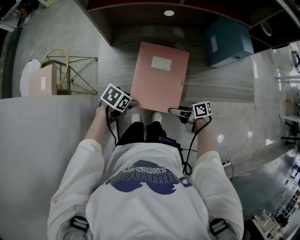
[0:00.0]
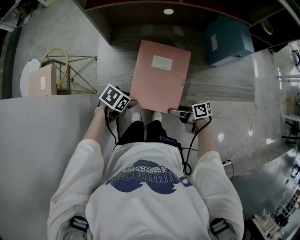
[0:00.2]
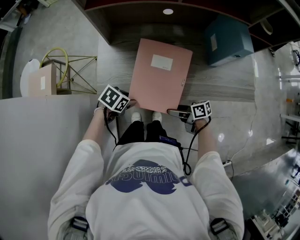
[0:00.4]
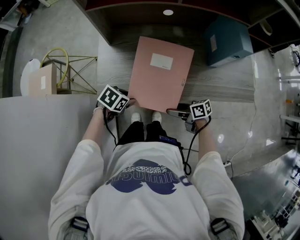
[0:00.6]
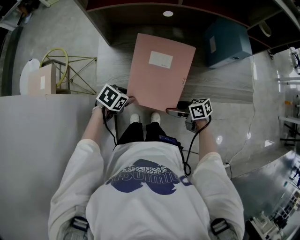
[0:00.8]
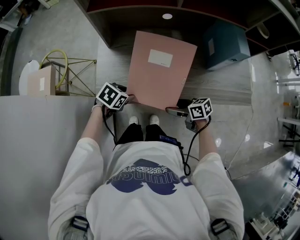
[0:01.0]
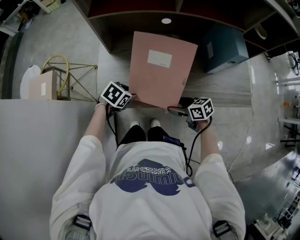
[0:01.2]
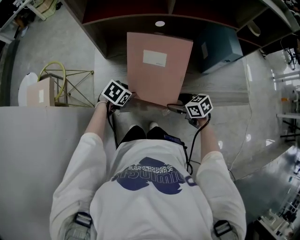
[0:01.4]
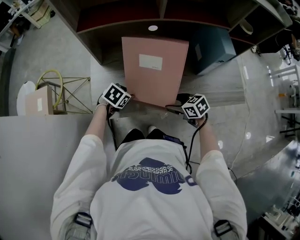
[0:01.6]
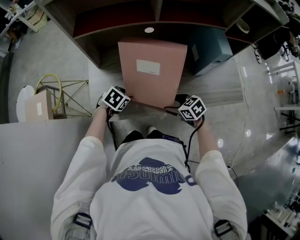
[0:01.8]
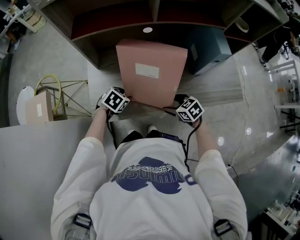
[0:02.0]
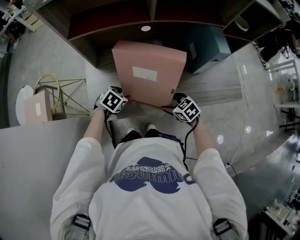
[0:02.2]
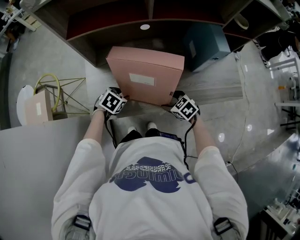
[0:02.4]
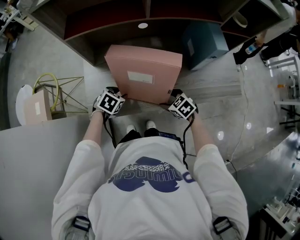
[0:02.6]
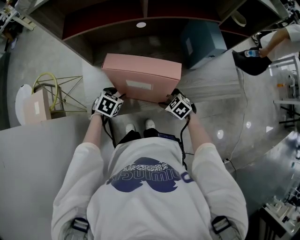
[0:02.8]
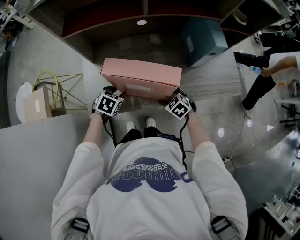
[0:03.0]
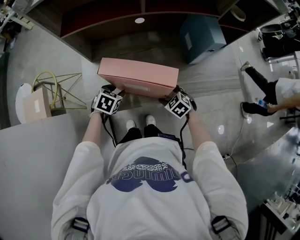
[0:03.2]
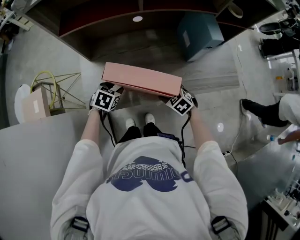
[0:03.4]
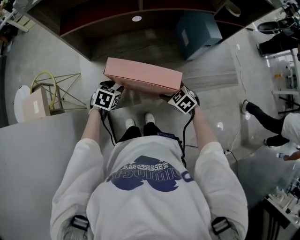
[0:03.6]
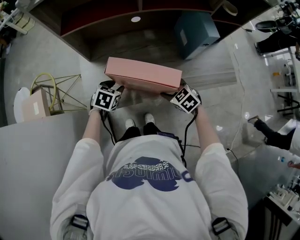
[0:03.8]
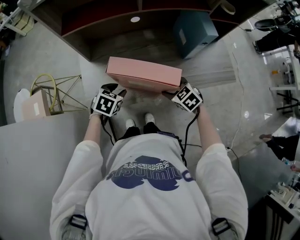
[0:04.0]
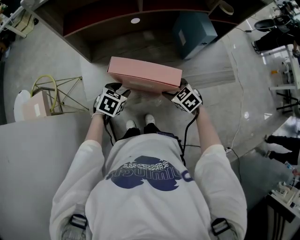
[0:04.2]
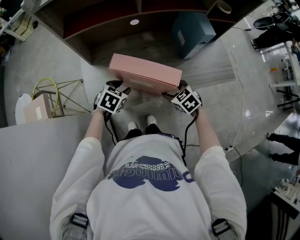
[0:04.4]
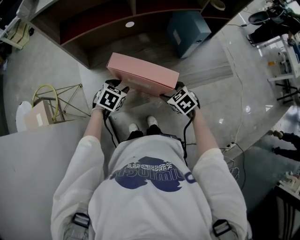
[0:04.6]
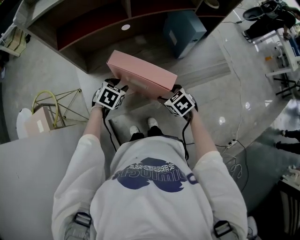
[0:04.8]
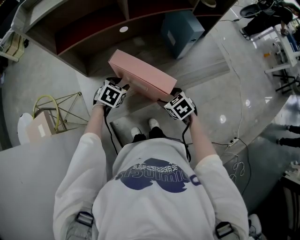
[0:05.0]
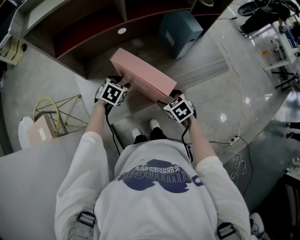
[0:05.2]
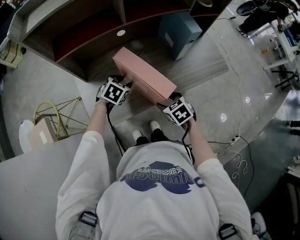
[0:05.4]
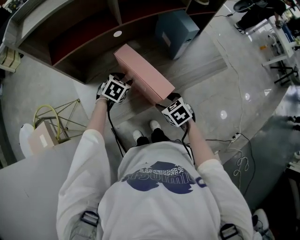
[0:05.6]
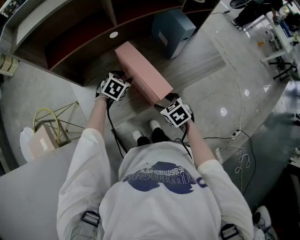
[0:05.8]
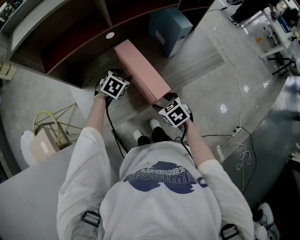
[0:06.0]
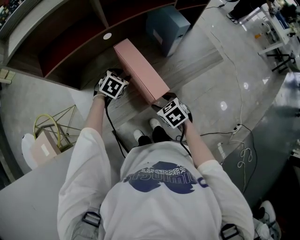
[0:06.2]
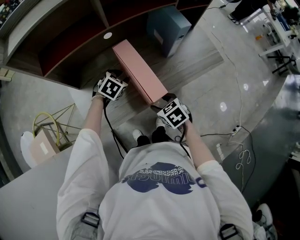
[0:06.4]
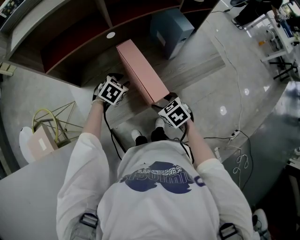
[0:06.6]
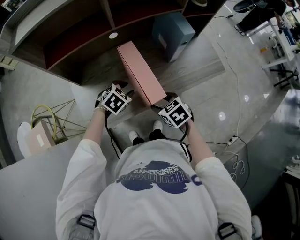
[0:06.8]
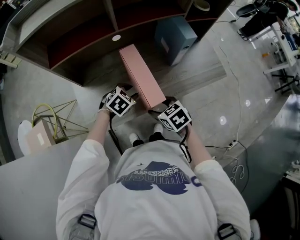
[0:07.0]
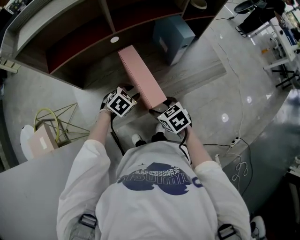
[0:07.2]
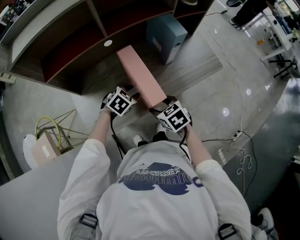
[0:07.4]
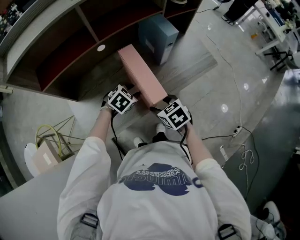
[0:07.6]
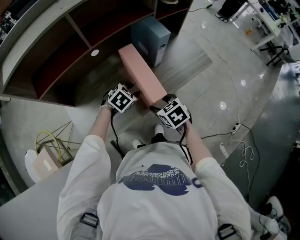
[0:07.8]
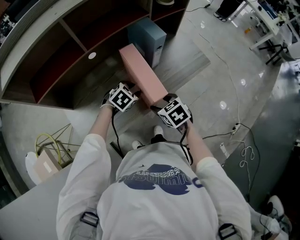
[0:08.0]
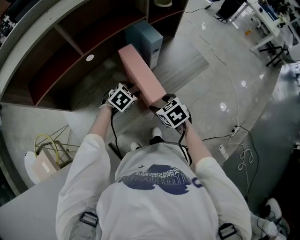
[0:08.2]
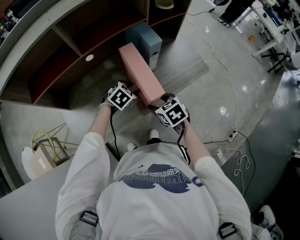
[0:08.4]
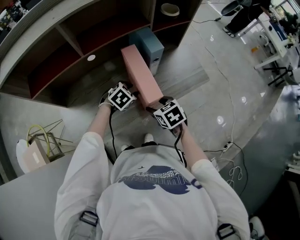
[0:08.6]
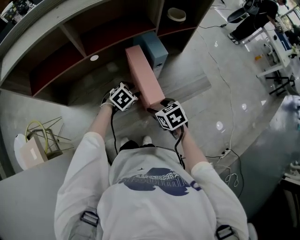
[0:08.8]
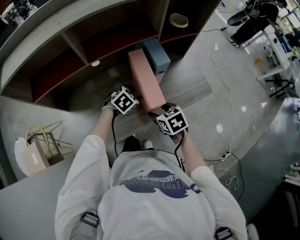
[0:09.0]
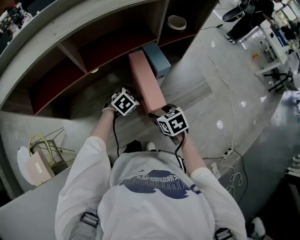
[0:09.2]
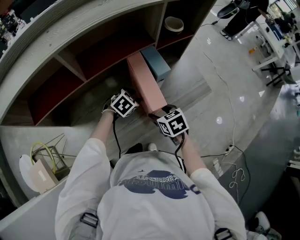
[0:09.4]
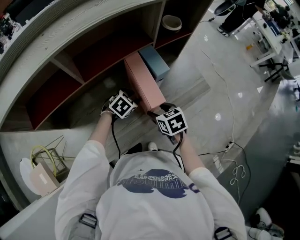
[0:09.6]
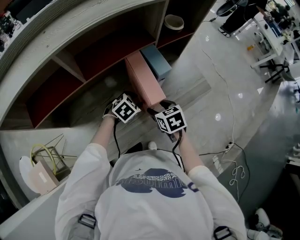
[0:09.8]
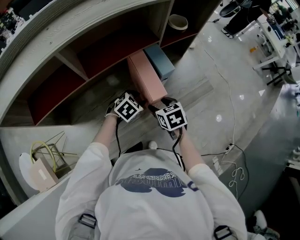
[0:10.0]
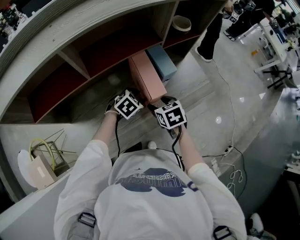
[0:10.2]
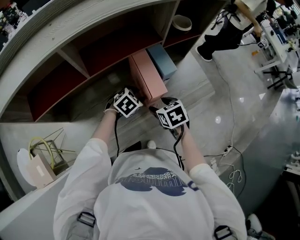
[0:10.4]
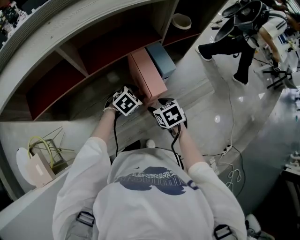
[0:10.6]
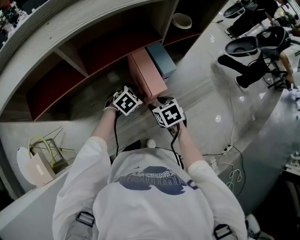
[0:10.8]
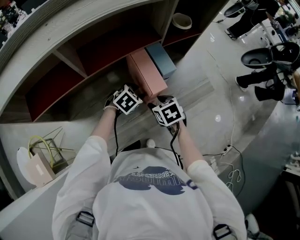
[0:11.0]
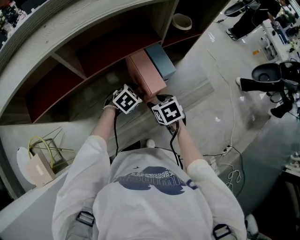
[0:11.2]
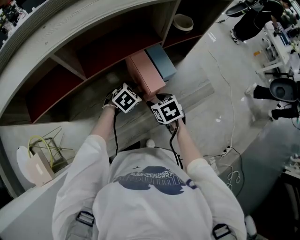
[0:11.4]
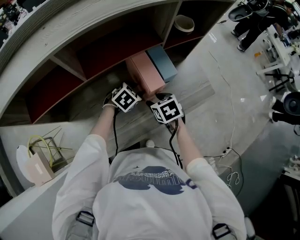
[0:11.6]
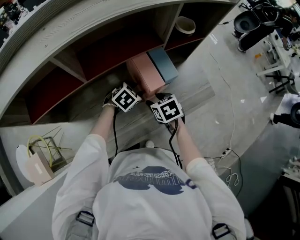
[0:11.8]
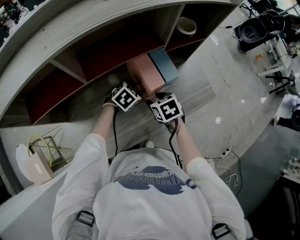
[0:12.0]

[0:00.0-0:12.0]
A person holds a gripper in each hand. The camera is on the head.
0:00.0 to 0:01.6: The left gripper moves approximately 10 cm. The right gripper shifts by approximately 10 cm, and rolls counterclockwise, seen from behind, by some 40 degrees.
0:01.6 to 0:03.0: The right gripper turns by some 30 degrees.
0:03.0 to 0:04.4: The right gripper is displaced upward by approximately 10 cm. Meanwhile the left gripper moves upward, approximately 5 cm.
0:04.4 to 0:06.0: The left gripper moves forward and to the right, some 15 cm, while the right gripper swivels about 20 degrees.
0:06.0 to 0:07.6: The left gripper moves to the right, roughly 10 cm, while the right gripper moves some 5 cm.
0:07.6 to 0:09.0: Both grippers travel together forward and to the right, roughly 10 cm.
0:09.0 to 0:10.4: The right gripper travels forward by approximately 5 cm.
0:10.4 to 0:12.0: The right gripper shifts about 5 cm forward.

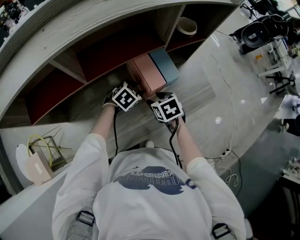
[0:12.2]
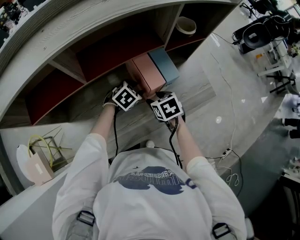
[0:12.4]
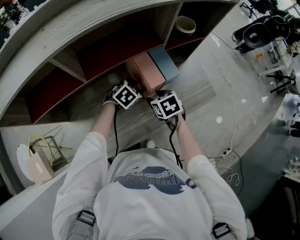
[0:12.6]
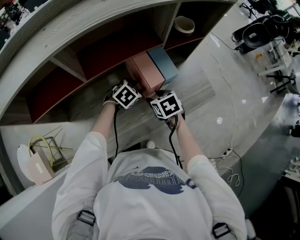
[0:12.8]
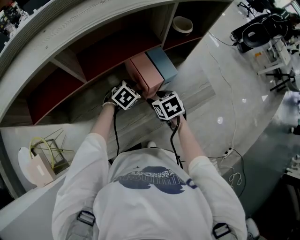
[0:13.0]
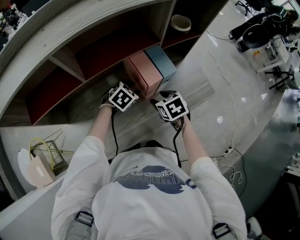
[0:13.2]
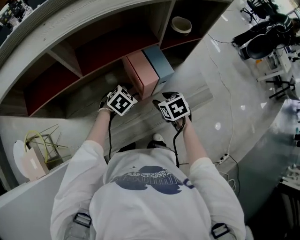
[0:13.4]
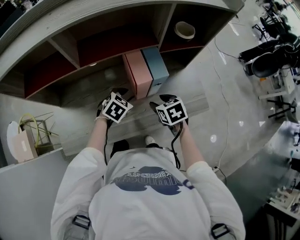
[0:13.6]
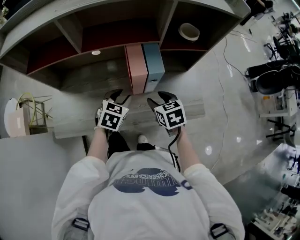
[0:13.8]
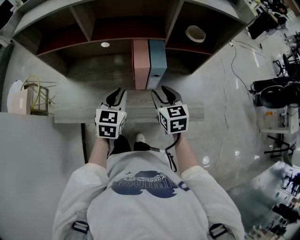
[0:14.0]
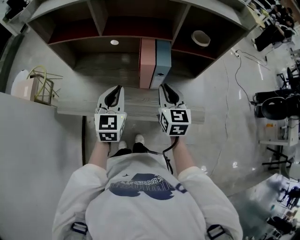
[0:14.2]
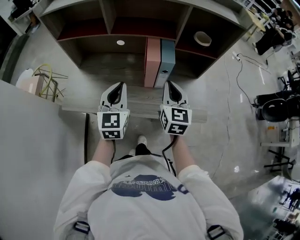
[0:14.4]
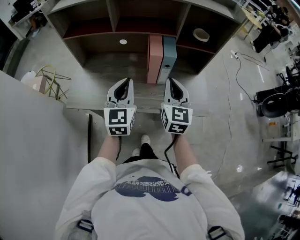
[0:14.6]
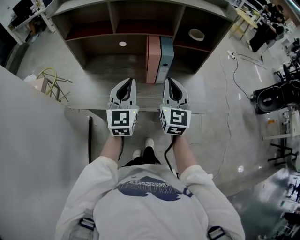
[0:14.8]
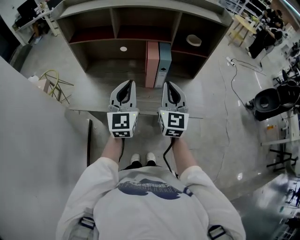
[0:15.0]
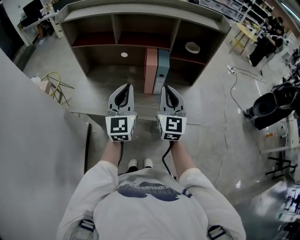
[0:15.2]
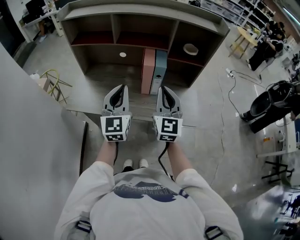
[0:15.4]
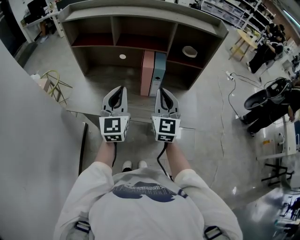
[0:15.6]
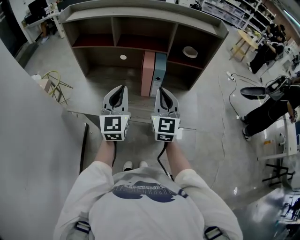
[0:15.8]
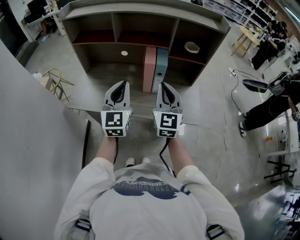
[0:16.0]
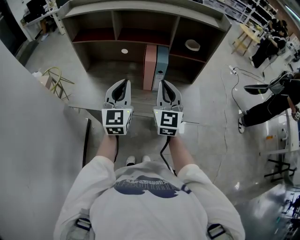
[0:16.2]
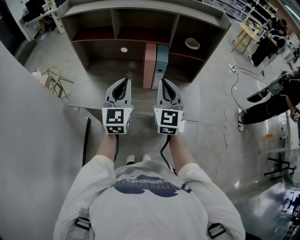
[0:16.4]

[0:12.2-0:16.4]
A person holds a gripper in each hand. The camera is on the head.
0:12.2 to 0:13.6: The right gripper heads to the right, covering about 5 cm; the left gripper ends up approximately 5 cm from where it was.
0:13.6 to 0:15.0: Both grippers travel together upward and backward, roughly 30 cm. The left gripper tips its fingers upward by approximately 50 degrees, and closes up. The right gripper angles its fingers upward, by approximately 60 degrees, and closes its fingers.
0:15.0 to 0:16.4: There are only small adjustments of the grippers.

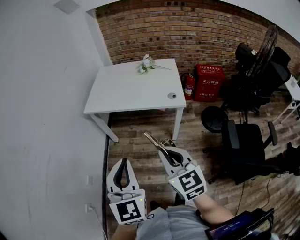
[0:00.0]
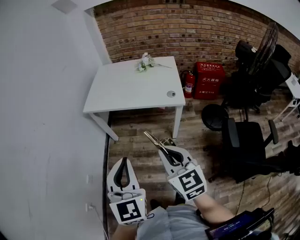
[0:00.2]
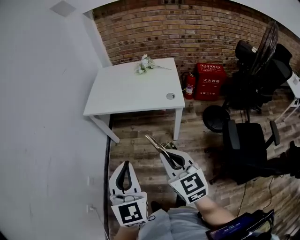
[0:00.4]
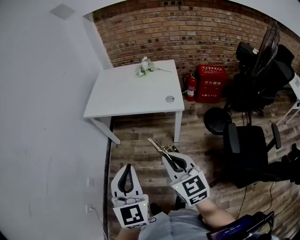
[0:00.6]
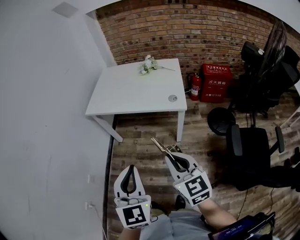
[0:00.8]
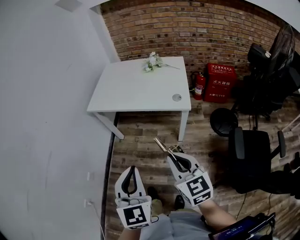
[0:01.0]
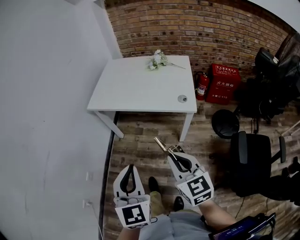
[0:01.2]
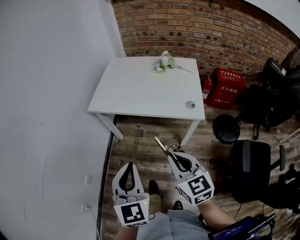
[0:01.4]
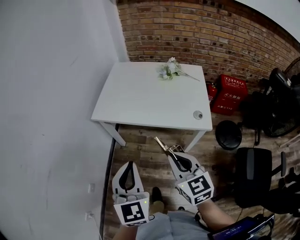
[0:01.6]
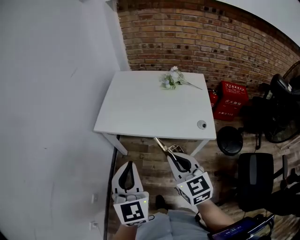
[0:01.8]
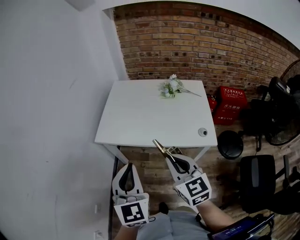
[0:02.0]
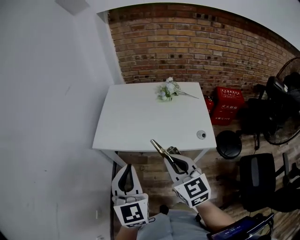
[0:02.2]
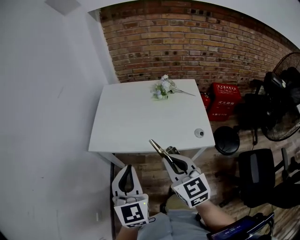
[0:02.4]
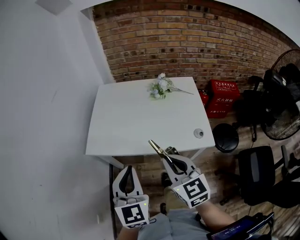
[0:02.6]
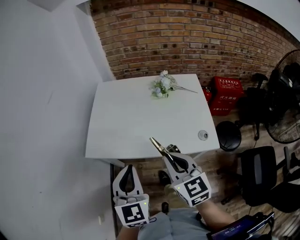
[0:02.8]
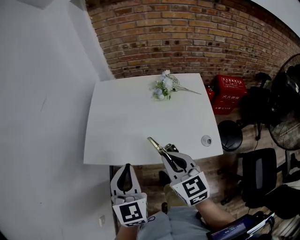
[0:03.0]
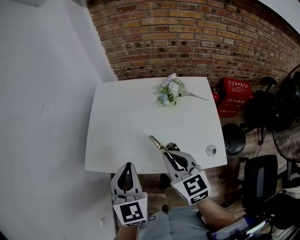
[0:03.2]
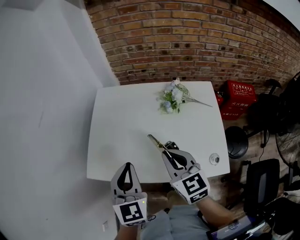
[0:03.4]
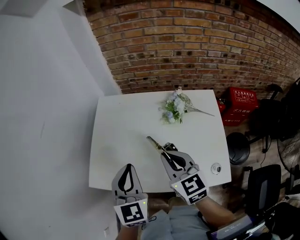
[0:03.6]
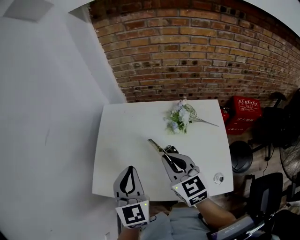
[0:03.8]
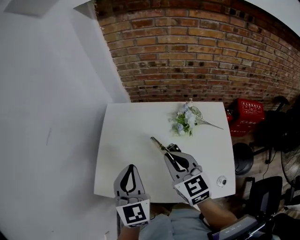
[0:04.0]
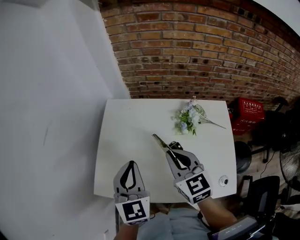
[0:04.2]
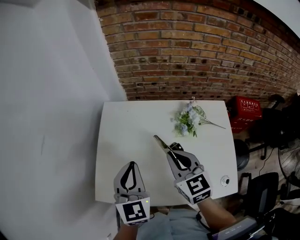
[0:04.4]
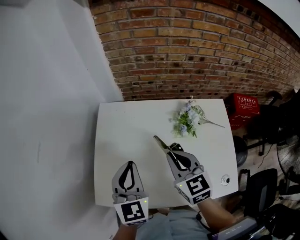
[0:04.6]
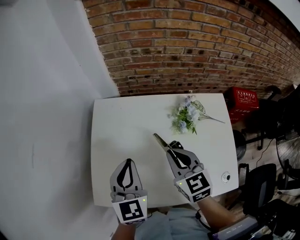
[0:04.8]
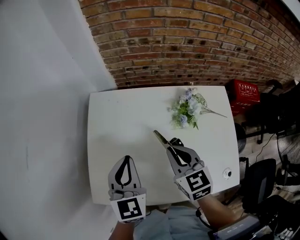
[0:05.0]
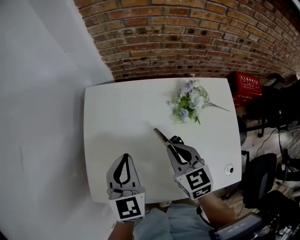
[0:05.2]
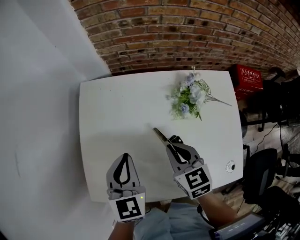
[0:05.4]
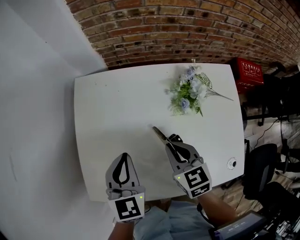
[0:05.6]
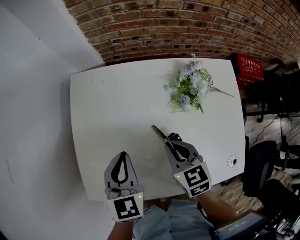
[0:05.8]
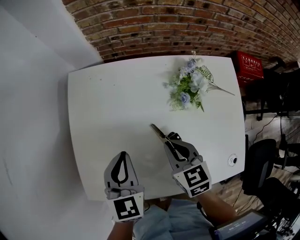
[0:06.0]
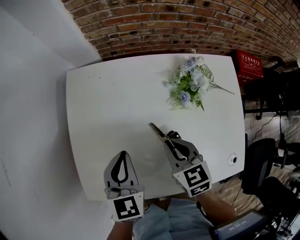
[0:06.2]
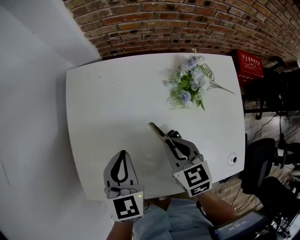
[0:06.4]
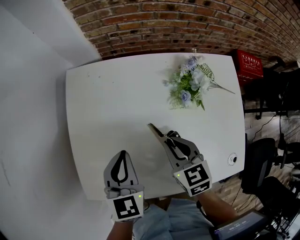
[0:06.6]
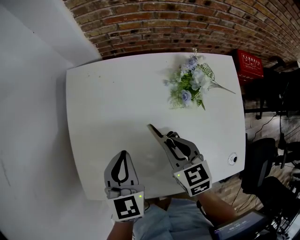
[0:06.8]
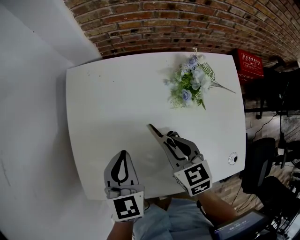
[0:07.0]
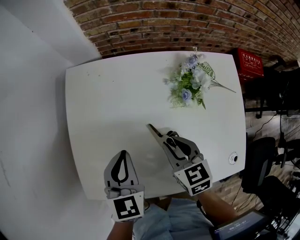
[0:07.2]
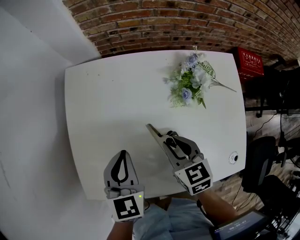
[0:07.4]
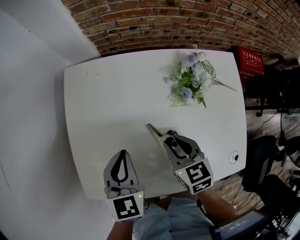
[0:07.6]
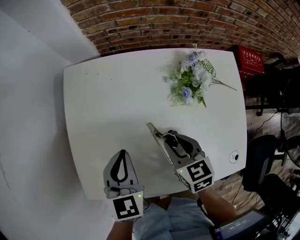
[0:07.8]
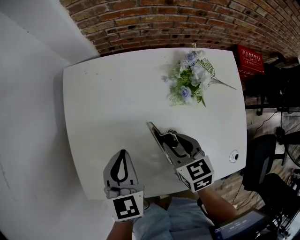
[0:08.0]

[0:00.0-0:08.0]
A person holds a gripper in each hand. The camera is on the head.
0:00.0 to 0:01.6: The grippers both shift forward and downward by some 15 cm.
0:01.6 to 0:03.2: The two grippers go approximately 30 cm forward.
0:03.2 to 0:04.8: Both grippers travel together forward, roughly 20 cm.
0:04.8 to 0:06.4: Both grippers travel together downward, roughly 10 cm.
0:06.4 to 0:08.0: The right gripper opens.
